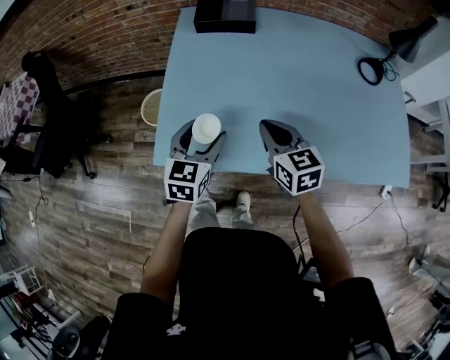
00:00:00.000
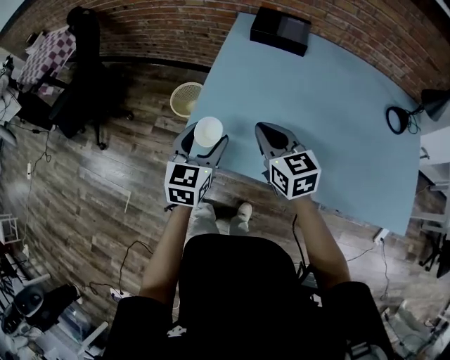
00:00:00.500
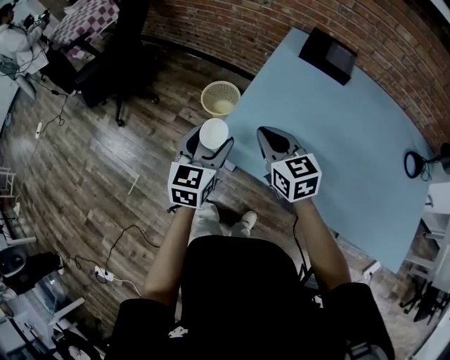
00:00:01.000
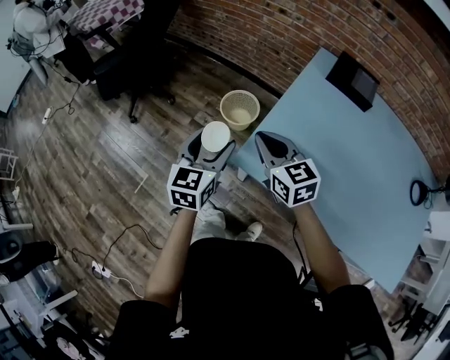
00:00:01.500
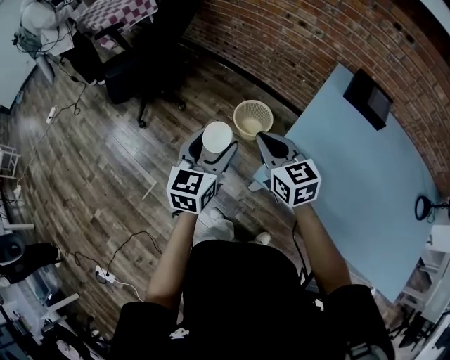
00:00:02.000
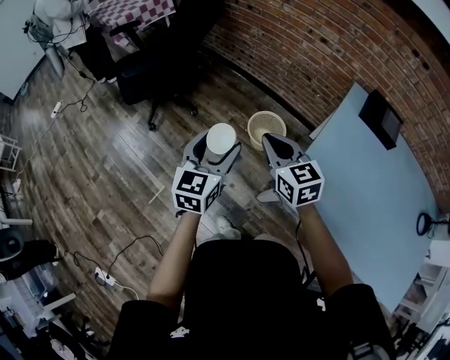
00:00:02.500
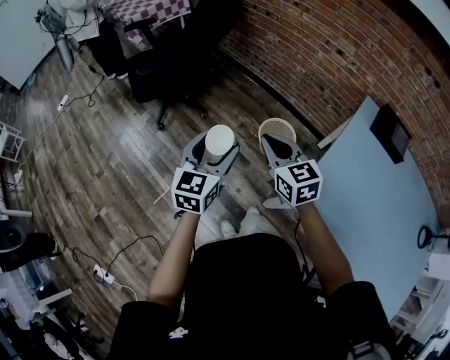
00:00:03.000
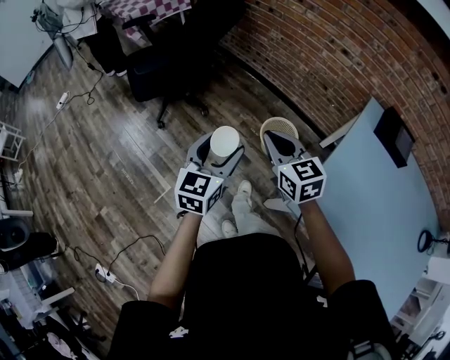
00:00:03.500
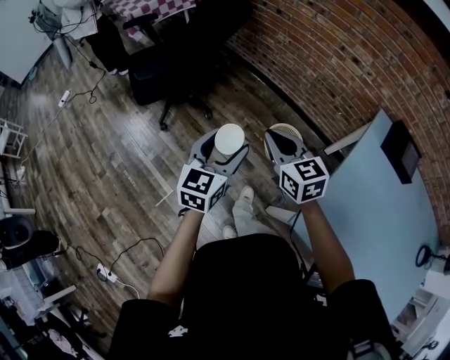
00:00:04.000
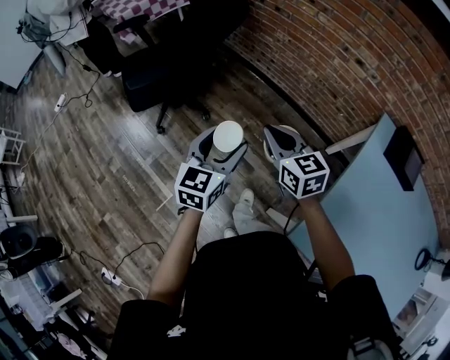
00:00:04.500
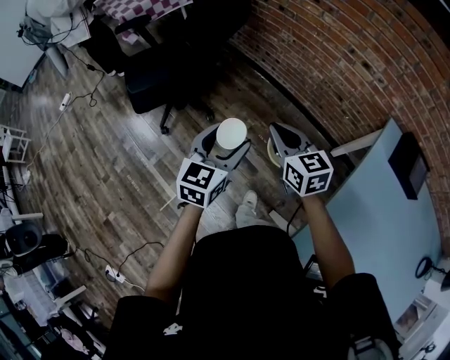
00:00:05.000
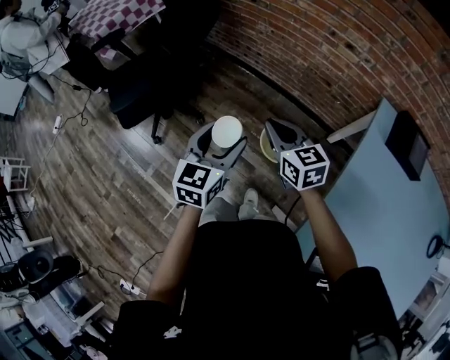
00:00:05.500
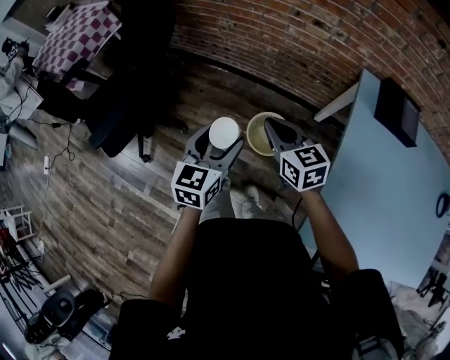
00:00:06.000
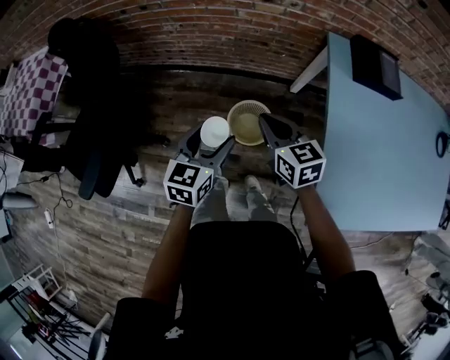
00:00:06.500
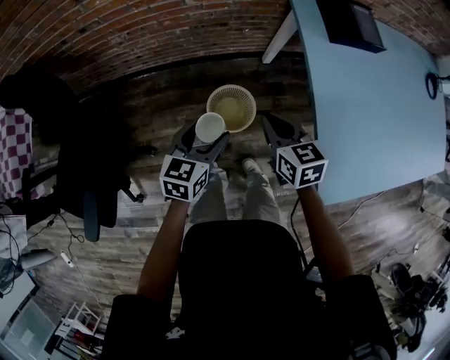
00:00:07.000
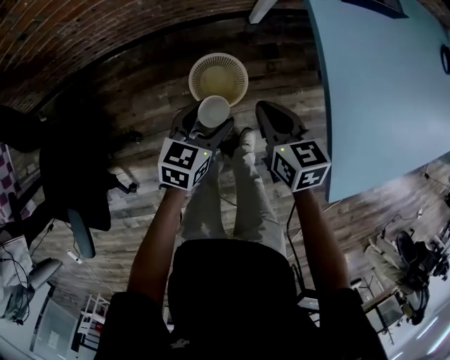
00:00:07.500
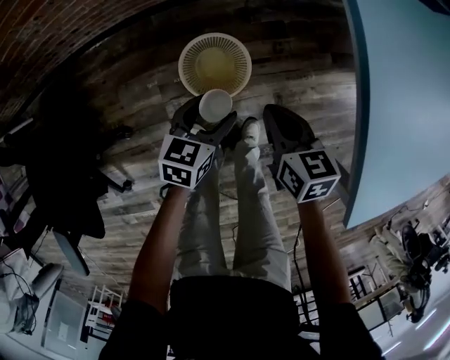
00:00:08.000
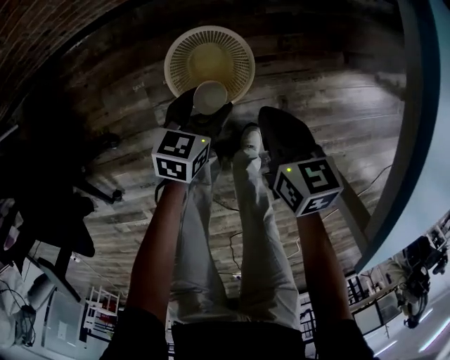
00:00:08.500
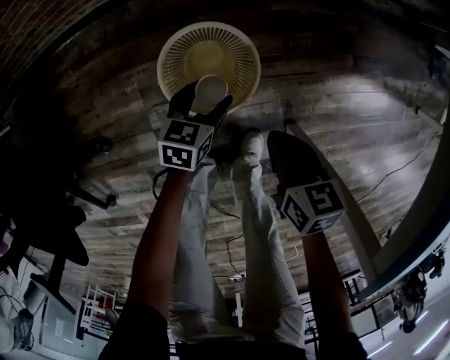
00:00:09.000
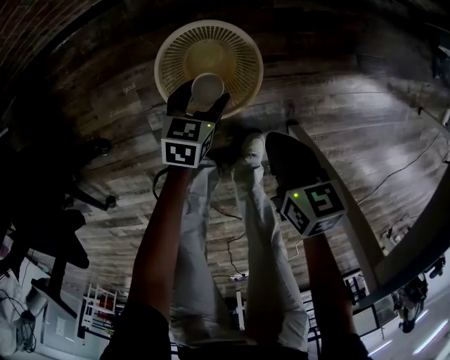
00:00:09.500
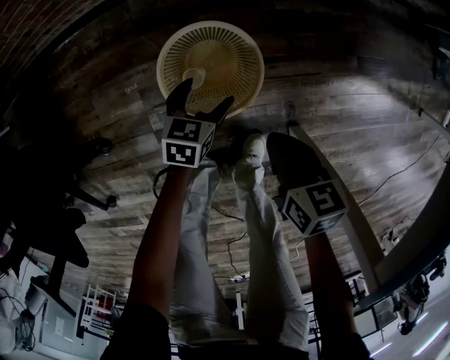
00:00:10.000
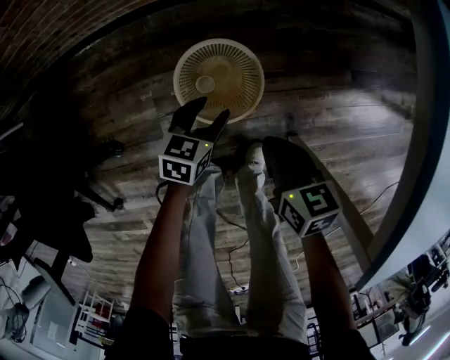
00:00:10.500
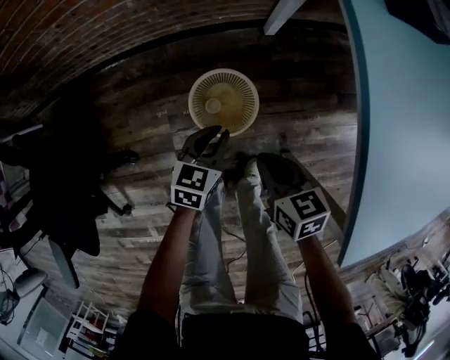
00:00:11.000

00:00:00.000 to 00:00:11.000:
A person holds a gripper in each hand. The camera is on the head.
00:00:00.000 to 00:00:02.000: The right gripper shifts by about 40 cm, and turns by roughly 40 degrees. The left gripper ends up roughly 40 cm from where it was, and changes its angle by some 30 degrees.
00:00:02.000 to 00:00:03.500: Both grippers move to the left and forward, roughly 15 cm.
00:00:03.500 to 00:00:05.500: Both grippers travel together forward, about 20 cm.
00:00:05.500 to 00:00:07.500: Both grippers move downward, roughly 25 cm. The left gripper swivels some 60 degrees, while the right gripper turns by approximately 60 degrees.
00:00:07.500 to 00:00:09.000: Both grippers travel together downward, approximately 35 cm.
00:00:09.000 to 00:00:11.000: The two grippers go some 20 cm upward. The left gripper closes up.

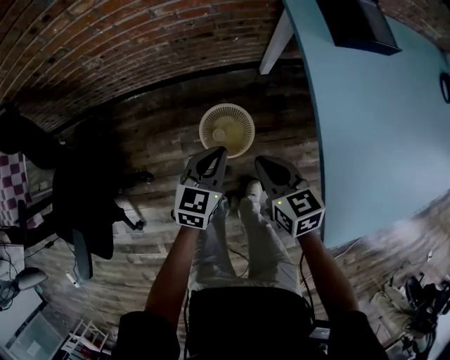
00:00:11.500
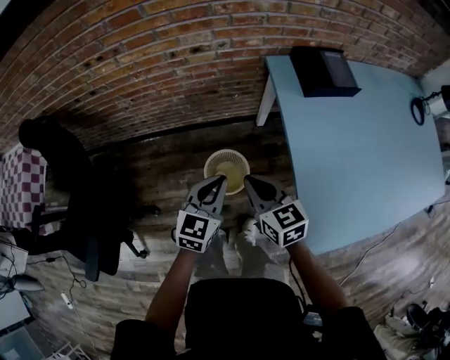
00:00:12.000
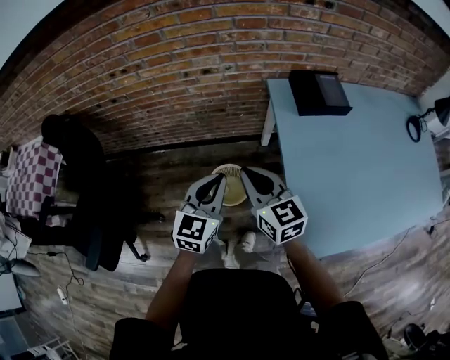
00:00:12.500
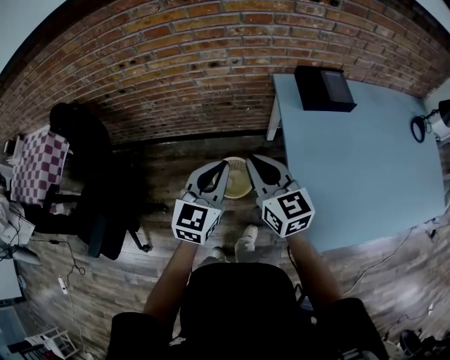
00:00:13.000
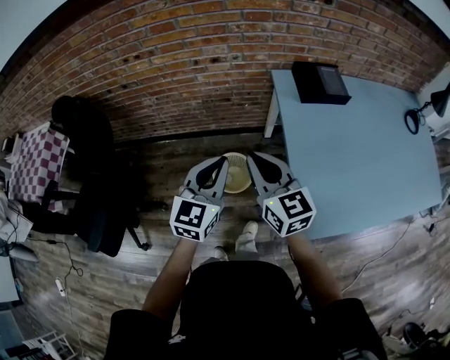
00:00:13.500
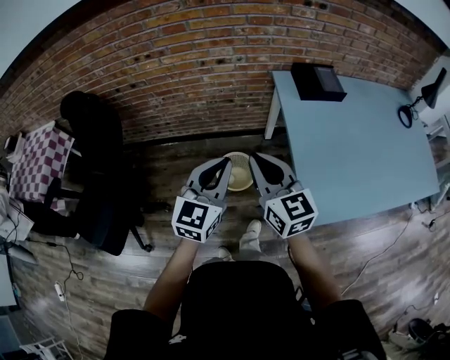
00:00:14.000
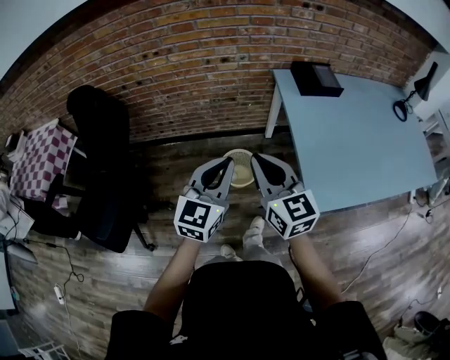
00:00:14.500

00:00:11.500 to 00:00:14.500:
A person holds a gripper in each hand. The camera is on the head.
00:00:11.500 to 00:00:13.000: The grippers both shift upward by approximately 30 cm. The right gripper rotates some 30 degrees, while the left gripper rotates approximately 20 degrees.
00:00:13.000 to 00:00:14.500: The two grippers go approximately 20 cm backward and to the left.

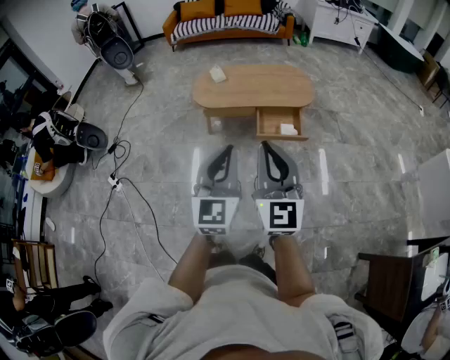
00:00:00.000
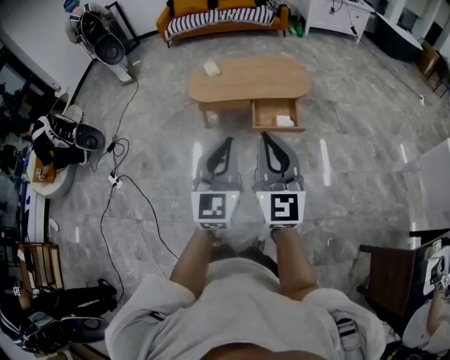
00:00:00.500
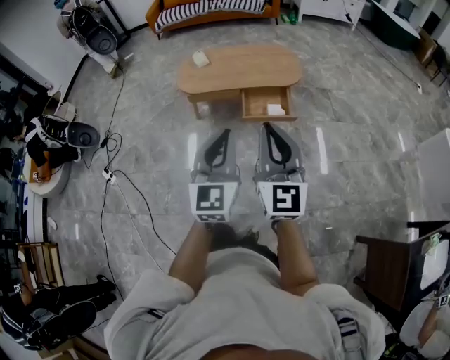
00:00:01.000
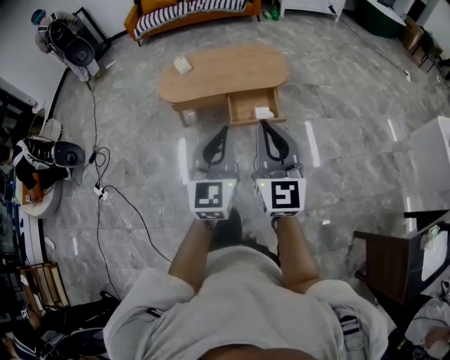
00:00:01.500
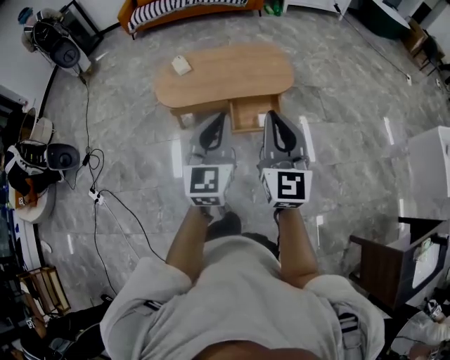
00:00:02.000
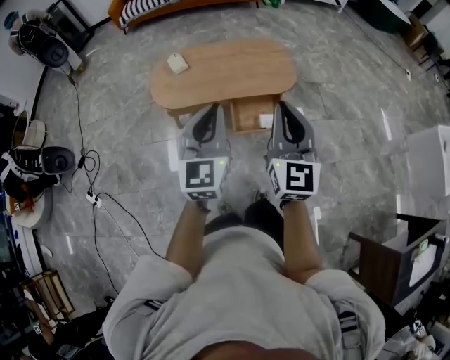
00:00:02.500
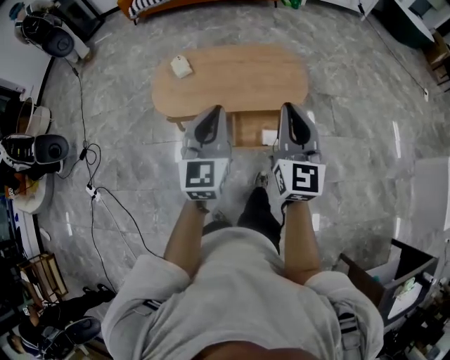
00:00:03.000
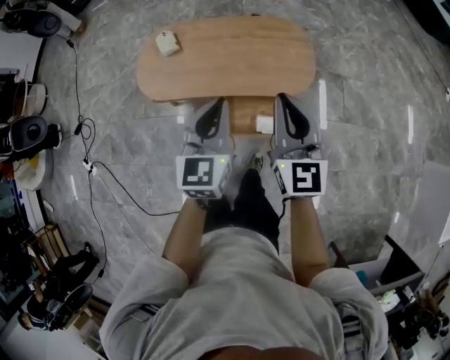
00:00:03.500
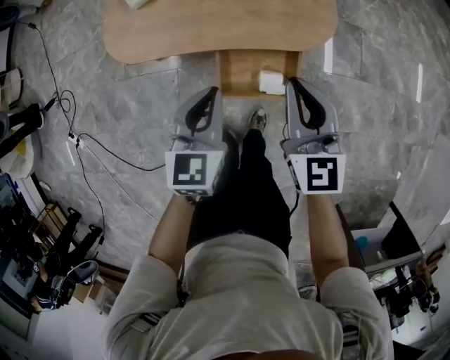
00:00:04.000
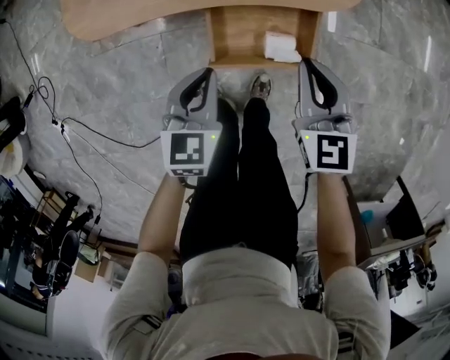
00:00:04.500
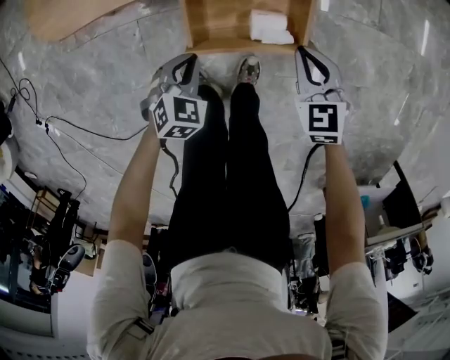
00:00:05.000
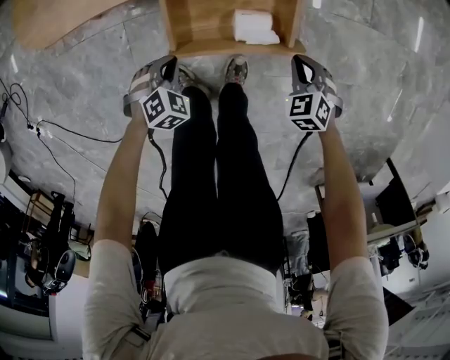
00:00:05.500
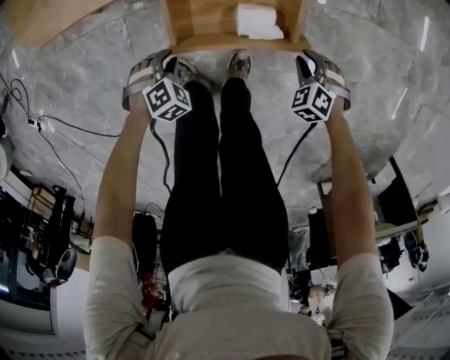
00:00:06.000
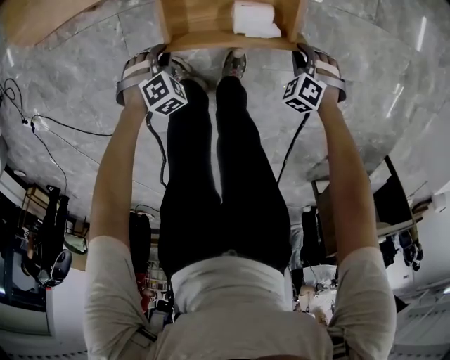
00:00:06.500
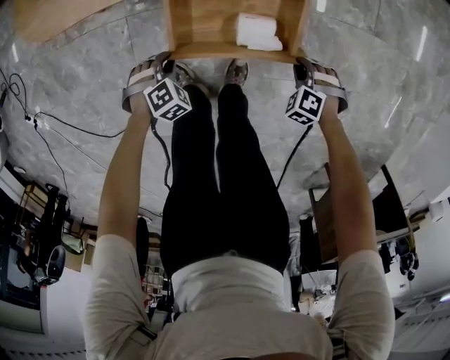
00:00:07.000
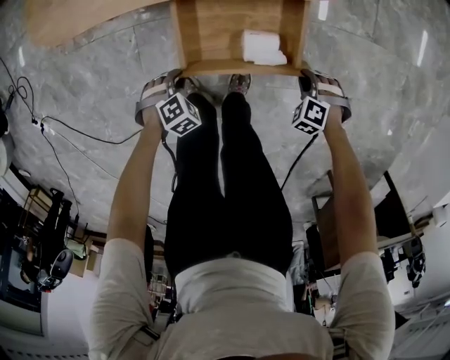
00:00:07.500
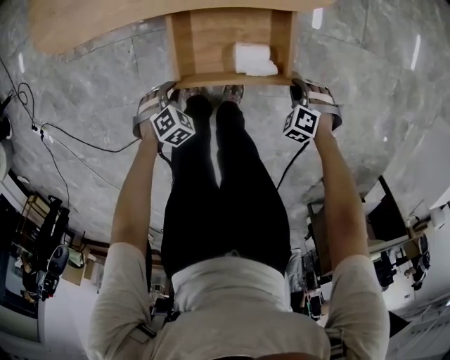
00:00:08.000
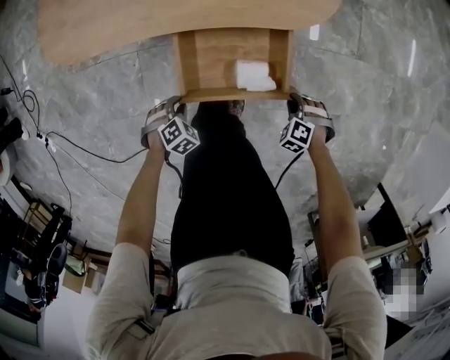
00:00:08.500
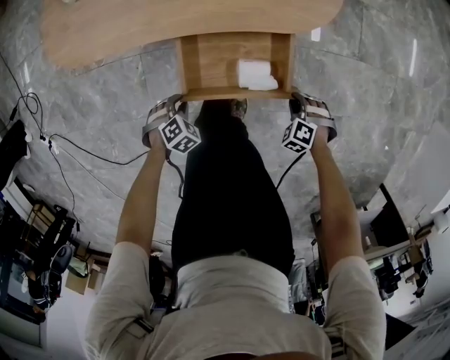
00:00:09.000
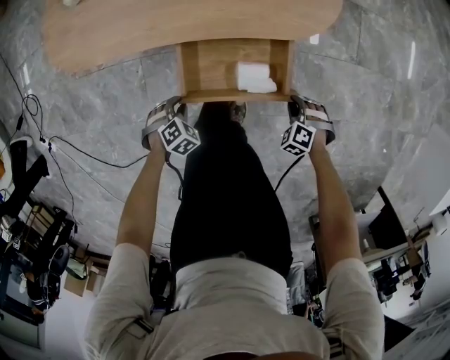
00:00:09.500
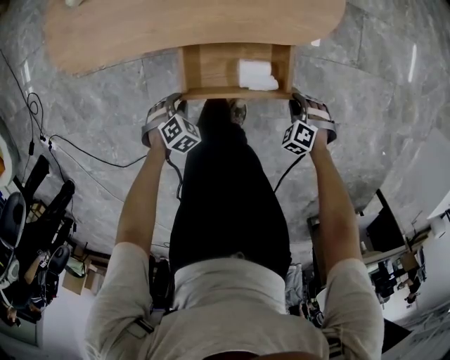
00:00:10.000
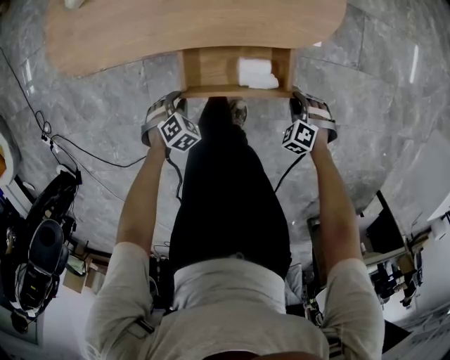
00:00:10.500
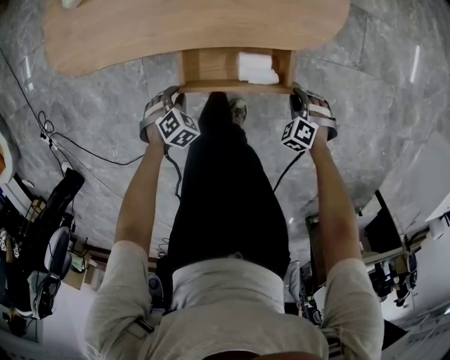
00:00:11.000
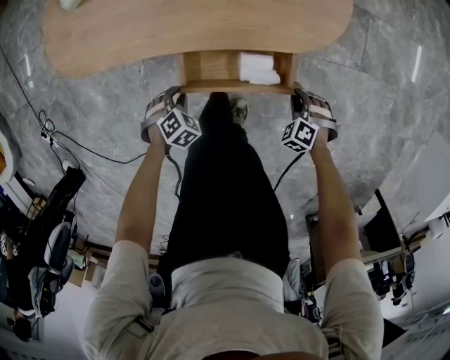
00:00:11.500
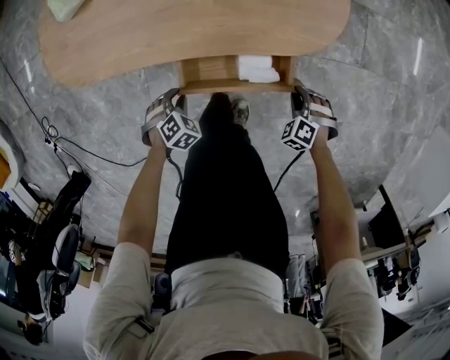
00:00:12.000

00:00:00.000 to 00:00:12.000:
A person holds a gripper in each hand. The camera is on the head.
00:00:00.000 to 00:00:02.000: The grippers both shift forward by approximately 25 cm.
00:00:02.000 to 00:00:04.000: The two grippers go roughly 50 cm forward and downward. The right gripper swivels some 30 degrees; the left gripper swivels some 30 degrees.
00:00:04.000 to 00:00:06.000: Both grippers move downward, some 50 cm. The left gripper angles its fingers downward, by approximately 50 degrees, and opens up. Meanwhile the right gripper angles its fingers downward, by roughly 50 degrees, and opens.
00:00:08.000 to 00:00:10.000: The right gripper moves approximately 5 cm. The left gripper ends up approximately 5 cm from where it was.
00:00:10.000 to 00:00:12.000: The right gripper shifts by approximately 5 cm, while the left gripper ends up roughly 5 cm from where it was.
